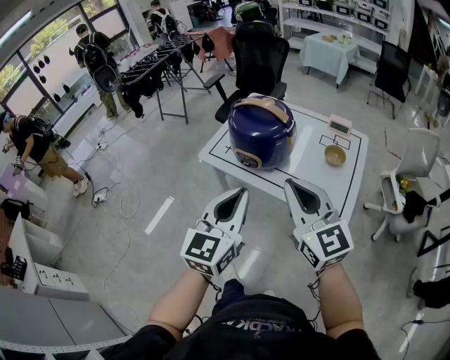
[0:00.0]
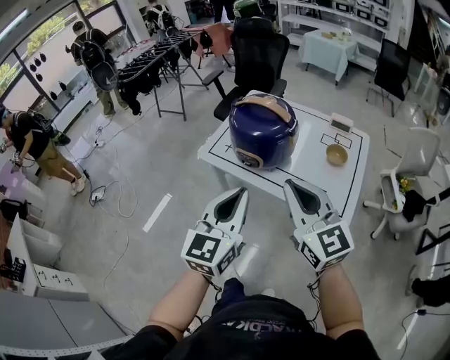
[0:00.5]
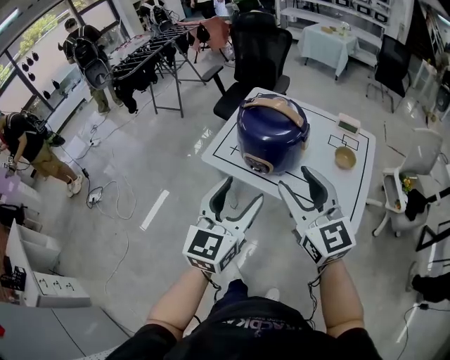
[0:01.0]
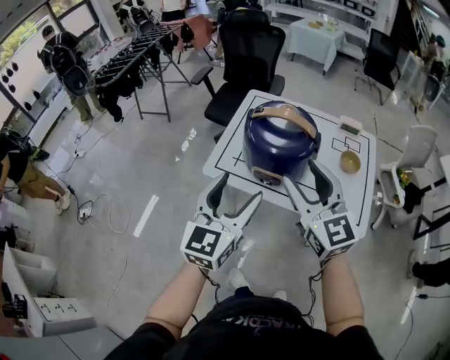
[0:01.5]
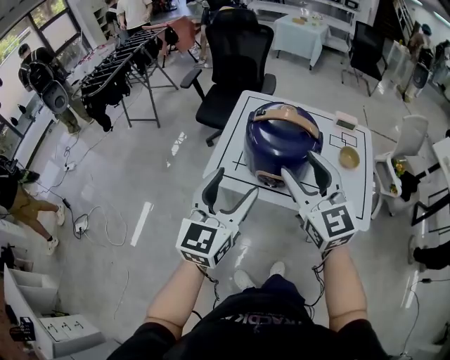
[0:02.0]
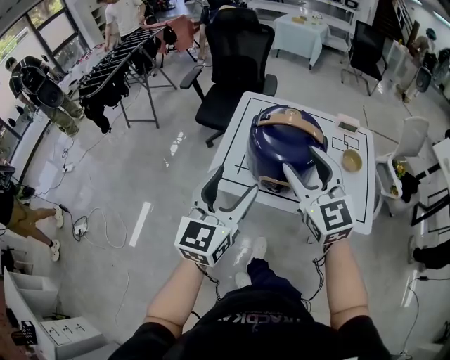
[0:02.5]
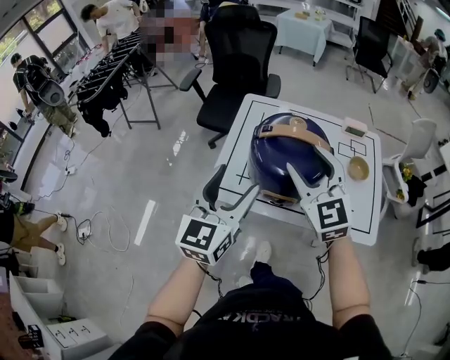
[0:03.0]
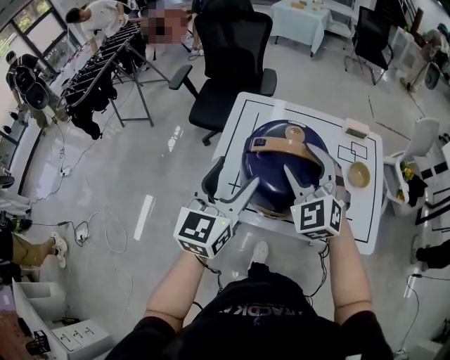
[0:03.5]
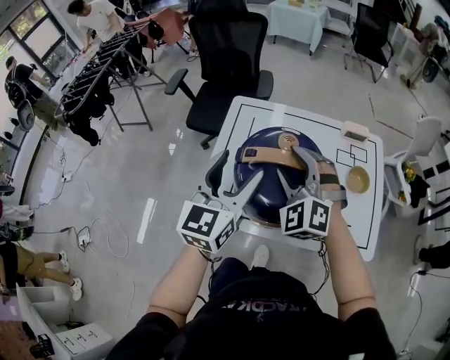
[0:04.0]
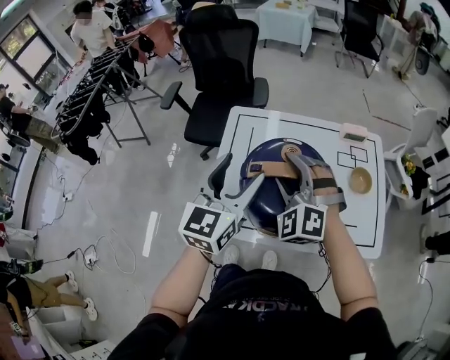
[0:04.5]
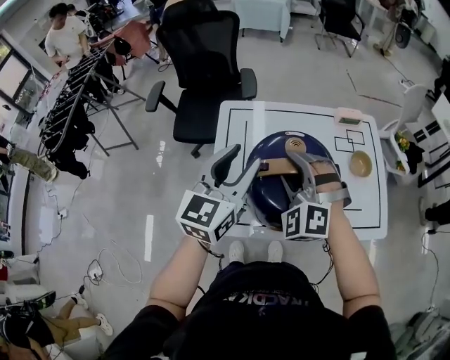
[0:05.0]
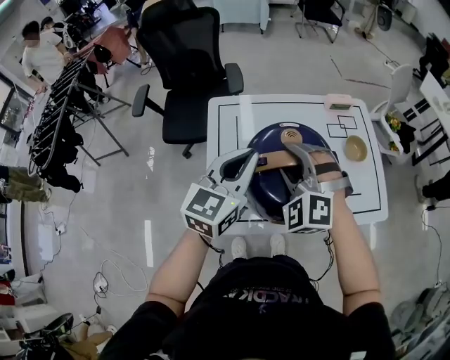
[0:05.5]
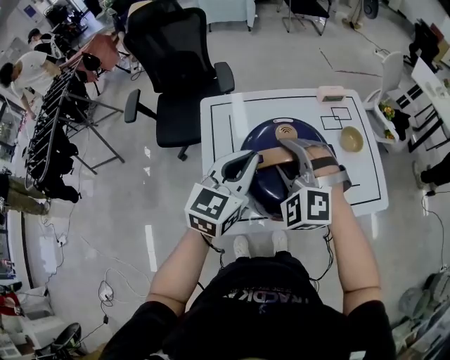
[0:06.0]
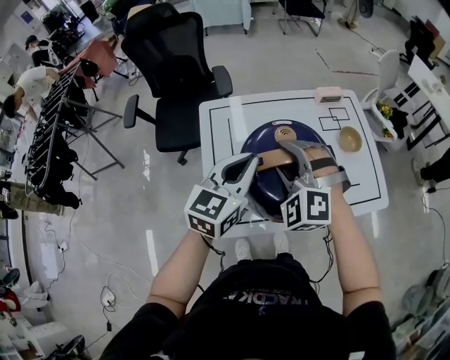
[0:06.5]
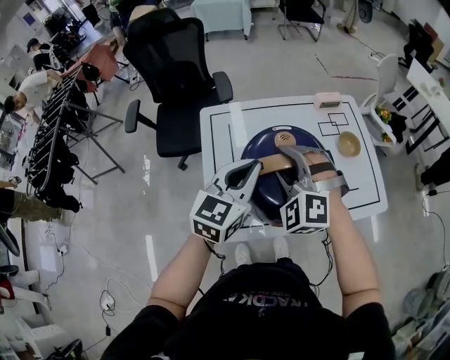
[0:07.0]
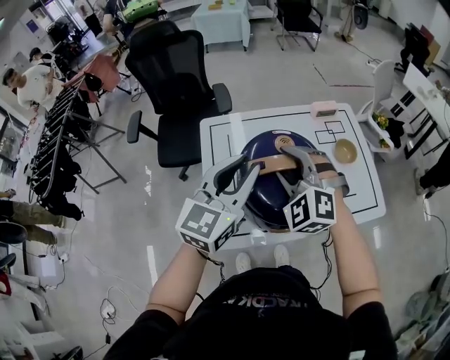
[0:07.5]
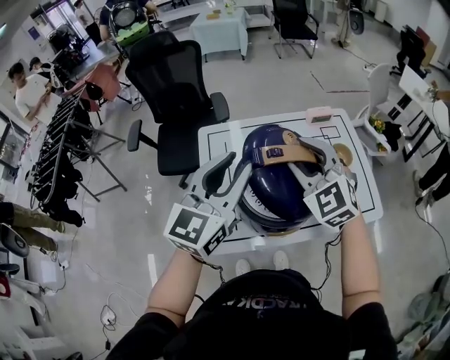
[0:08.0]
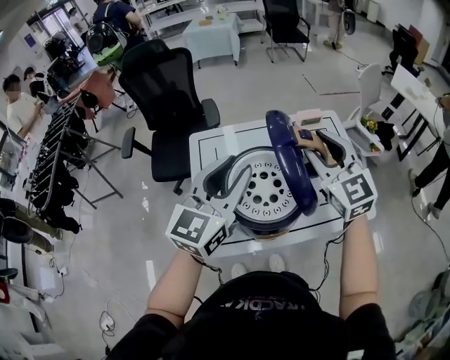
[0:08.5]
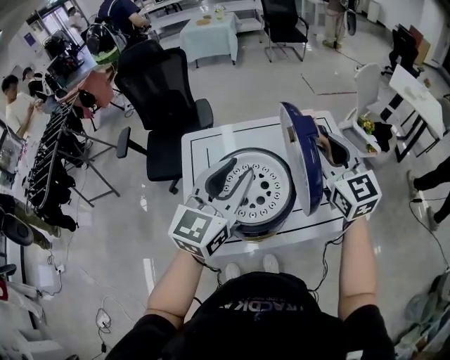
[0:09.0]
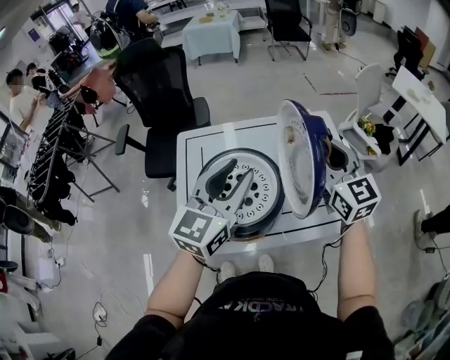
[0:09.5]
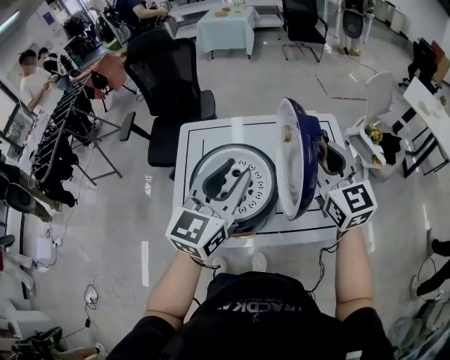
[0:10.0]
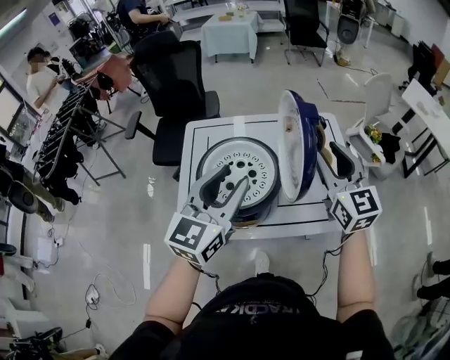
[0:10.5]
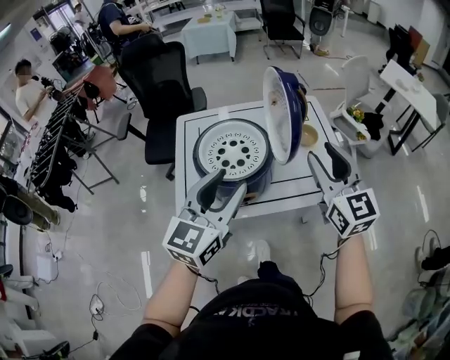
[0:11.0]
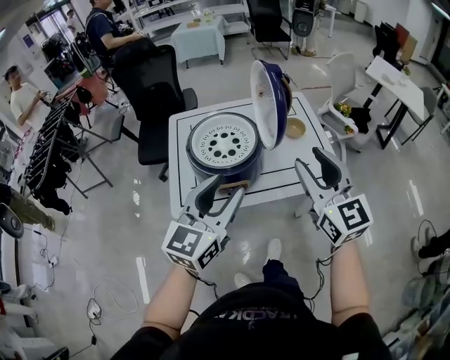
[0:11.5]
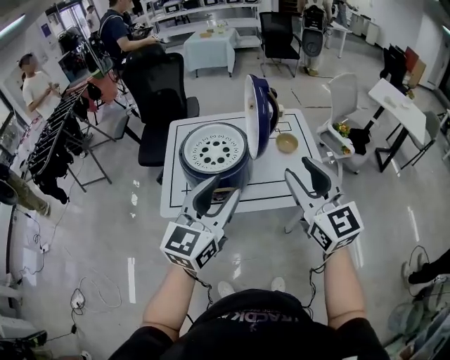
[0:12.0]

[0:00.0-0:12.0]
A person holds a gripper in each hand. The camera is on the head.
0:00.0 to 0:02.0: Both grippers travel together forward and to the left, about 25 cm. The right gripper opens its fingers. Meanwhile the left gripper opens its fingers.
0:02.0 to 0:04.0: The right gripper travels forward and downward by approximately 25 cm, and rotates around the line of its fingers by approximately 40 degrees, counterclockwise from behind. Meanwhile the left gripper heads forward, covering roughly 25 cm.
0:04.0 to 0:06.0: The left gripper goes about 5 cm forward, swivels roughly 30 degrees, and closes.
0:06.0 to 0:08.0: The left gripper is displaced upward by approximately 10 cm, and opens up. The right gripper travels upward and to the right by about 10 cm, and rotates approximately 30 degrees.
0:08.0 to 0:10.0: Both grippers move to the right, about 15 cm. The right gripper swivels about 30 degrees.
0:10.0 to 0:12.0: Both grippers move backward, some 25 cm.

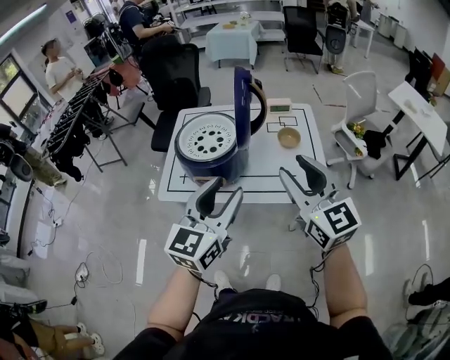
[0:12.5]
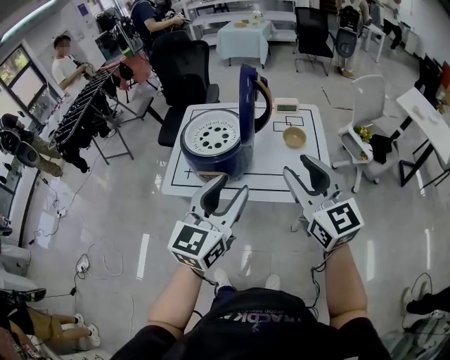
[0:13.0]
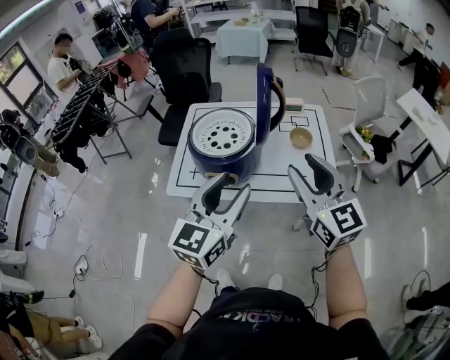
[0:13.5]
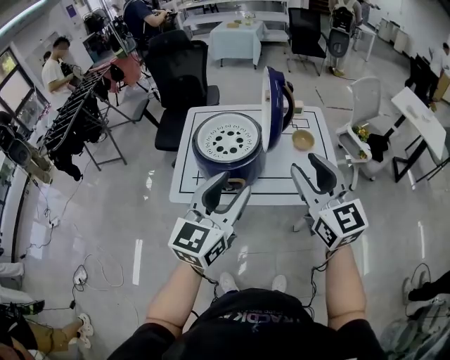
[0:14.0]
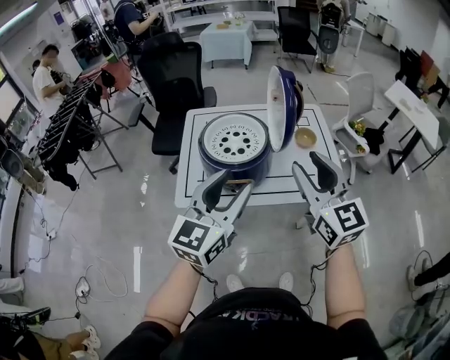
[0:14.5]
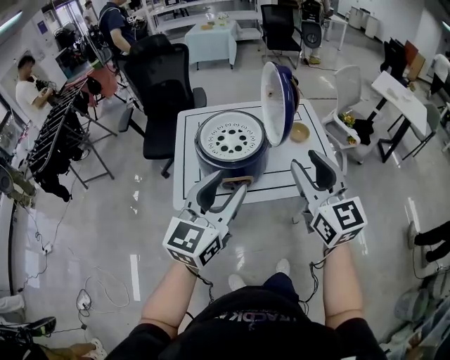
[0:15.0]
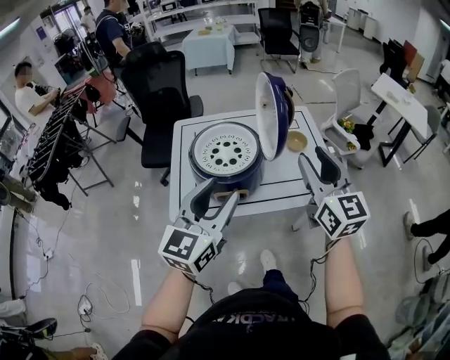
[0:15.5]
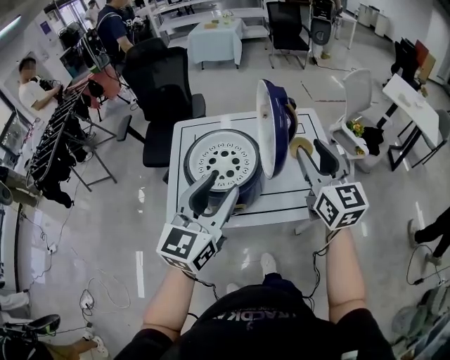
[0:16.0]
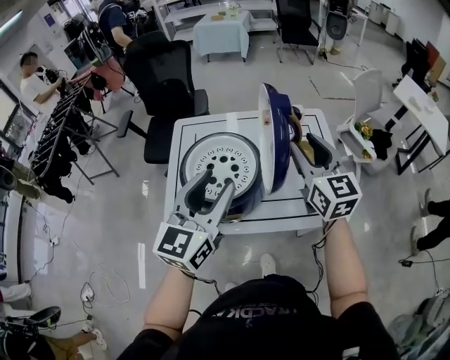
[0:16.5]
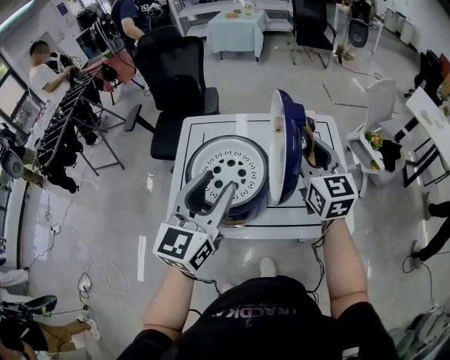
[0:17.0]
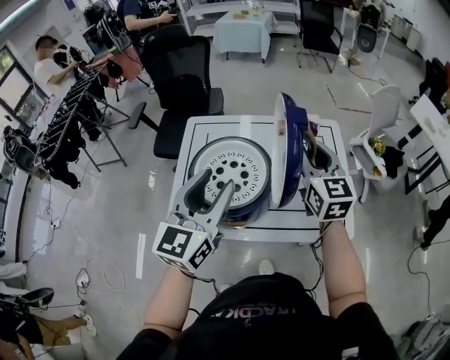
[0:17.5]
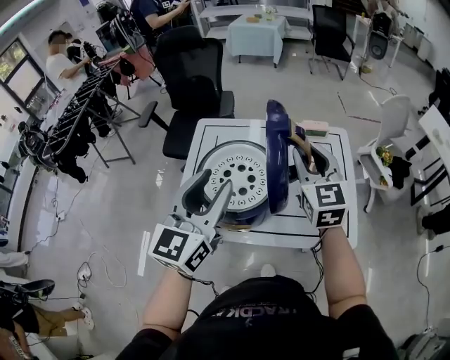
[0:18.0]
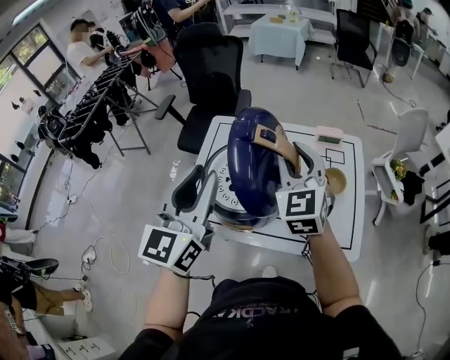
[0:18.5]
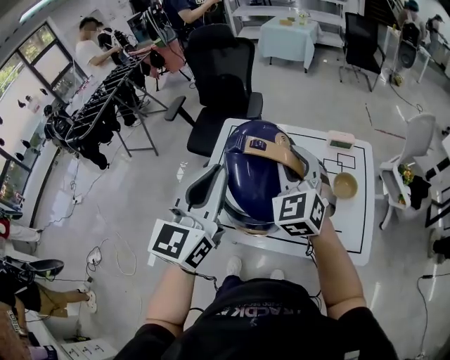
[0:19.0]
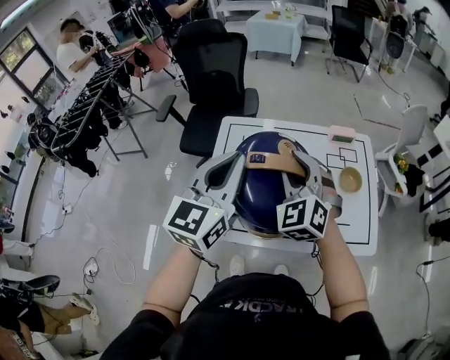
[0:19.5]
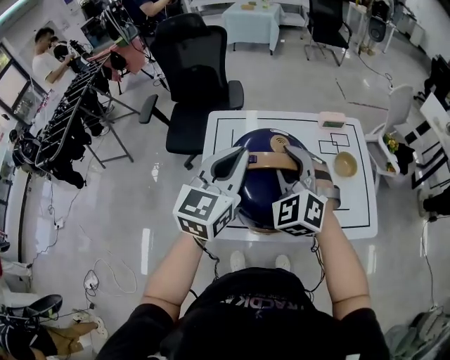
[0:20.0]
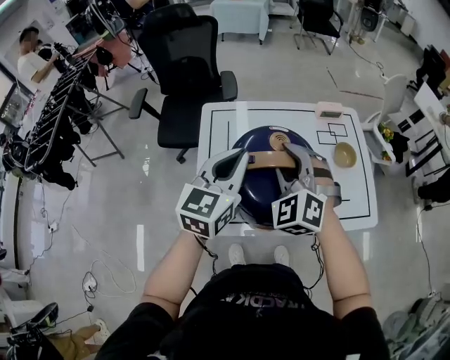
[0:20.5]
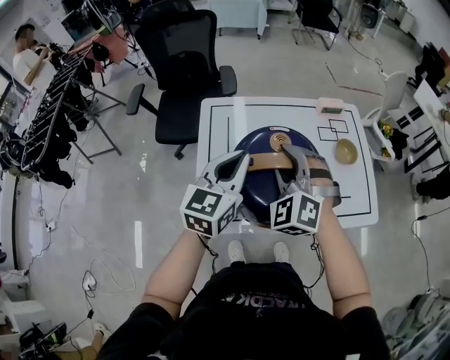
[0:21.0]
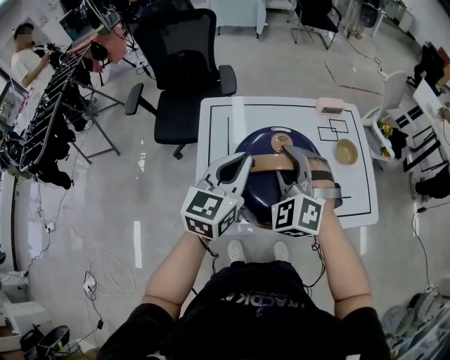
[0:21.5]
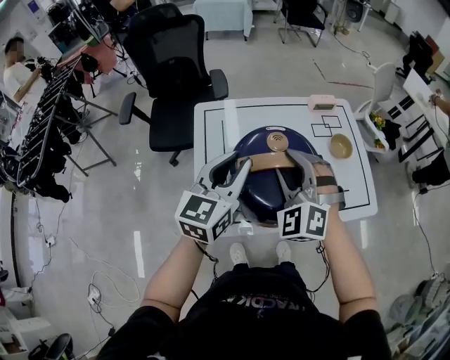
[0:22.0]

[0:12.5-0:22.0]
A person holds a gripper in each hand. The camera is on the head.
0:12.5 to 0:14.5: The two grippers go approximately 10 cm to the left.
0:14.5 to 0:16.5: Both grippers move forward, approximately 20 cm.
0:16.5 to 0:18.0: The right gripper goes roughly 5 cm to the left.
0:18.0 to 0:20.0: The right gripper heads to the left, covering roughly 15 cm, and rotates around the line of its fingers by about 40 degrees, counterclockwise from behind; the left gripper moves forward and to the left, roughly 10 cm, and closes its fingers.
0:20.0 to 0:22.0: The left gripper goes approximately 5 cm downward.

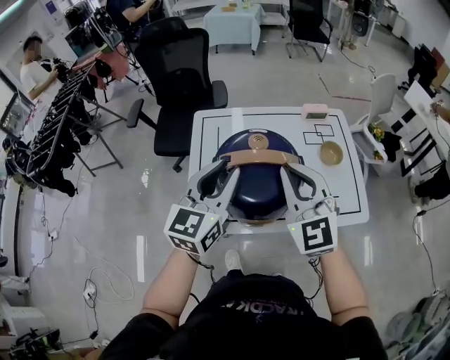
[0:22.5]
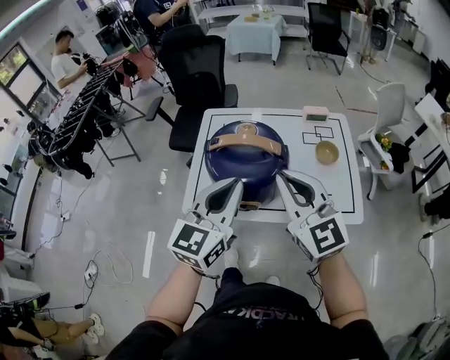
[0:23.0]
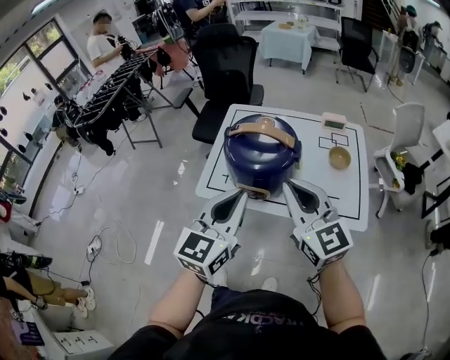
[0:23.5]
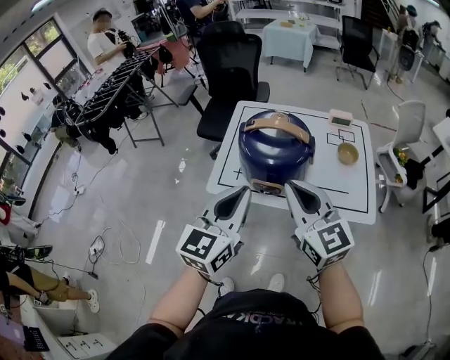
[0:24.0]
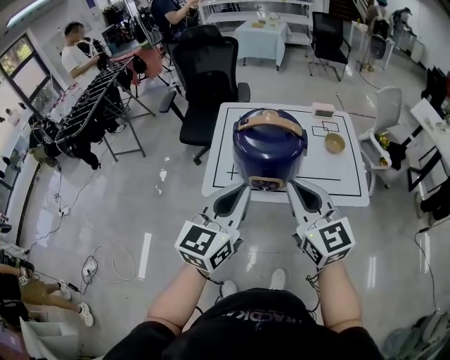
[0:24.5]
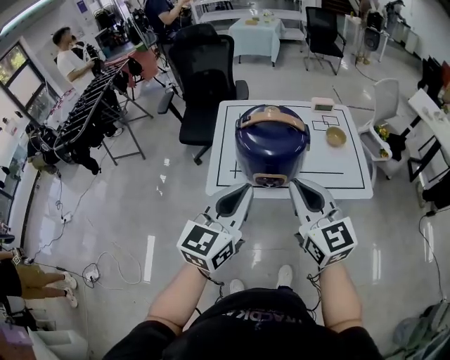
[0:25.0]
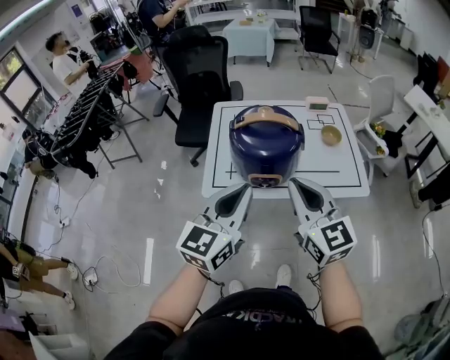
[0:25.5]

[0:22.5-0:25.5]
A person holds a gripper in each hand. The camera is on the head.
0:22.5 to 0:24.0: Both grippers travel together backward, about 20 cm. The right gripper rotates roughly 30 degrees.
0:24.0 to 0:25.5: The grippers move only a little.

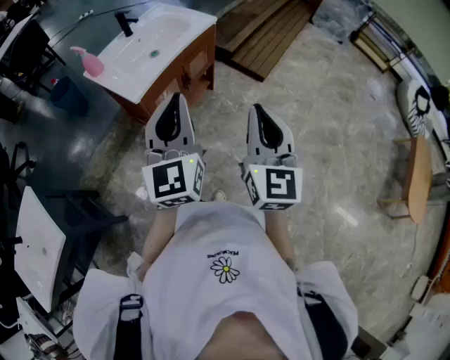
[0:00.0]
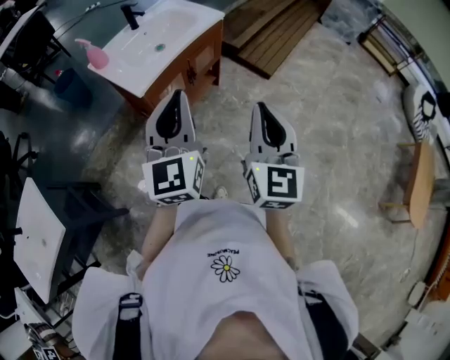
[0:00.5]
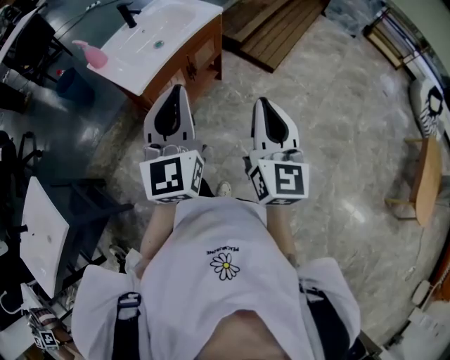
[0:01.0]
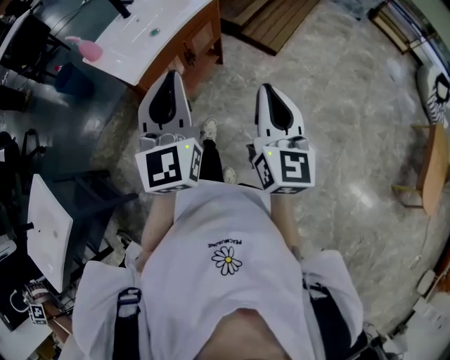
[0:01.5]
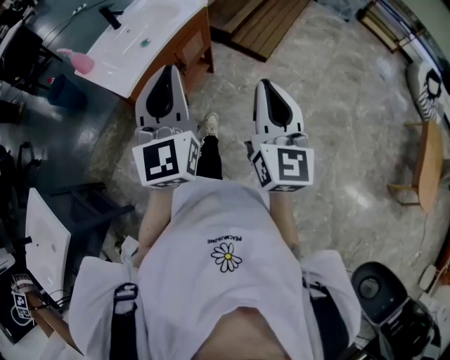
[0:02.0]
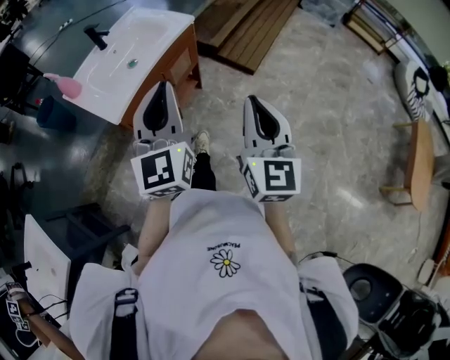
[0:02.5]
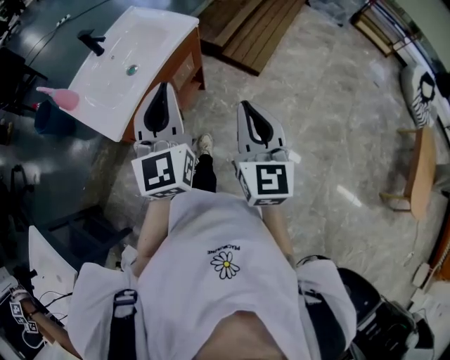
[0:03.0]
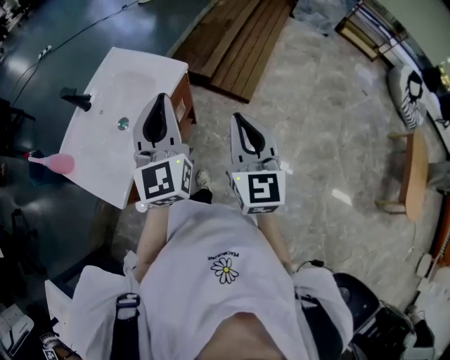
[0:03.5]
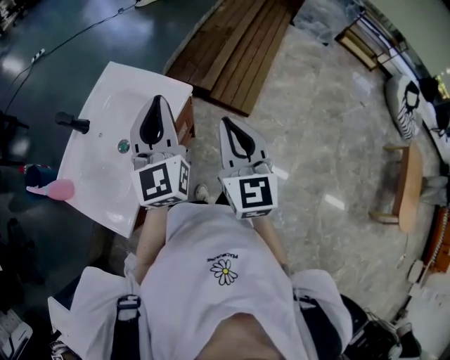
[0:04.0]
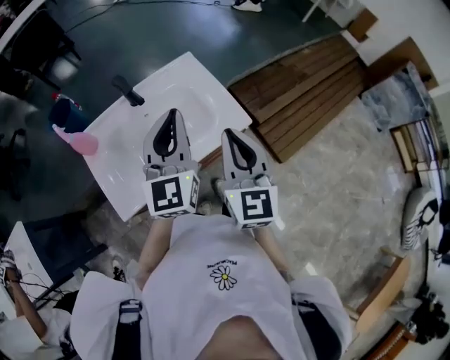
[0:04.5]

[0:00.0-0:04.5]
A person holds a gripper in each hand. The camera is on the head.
0:00.0 to 0:02.0: The right gripper shifts about 5 cm to the right, while the left gripper changes place by roughly 5 cm.
0:02.0 to 0:04.5: The pair of grippers is taken approximately 50 cm. The right gripper rotates some 30 degrees. Meanwhile the left gripper swivels about 20 degrees.
